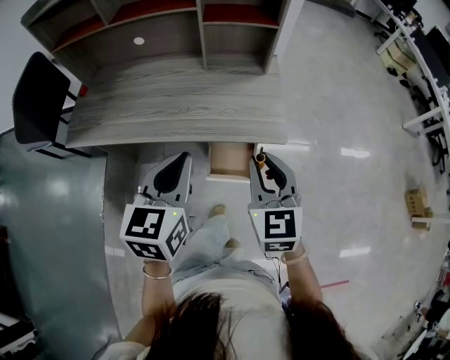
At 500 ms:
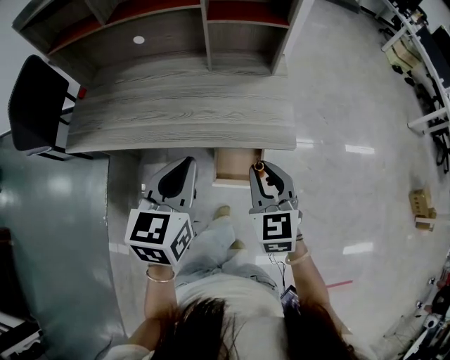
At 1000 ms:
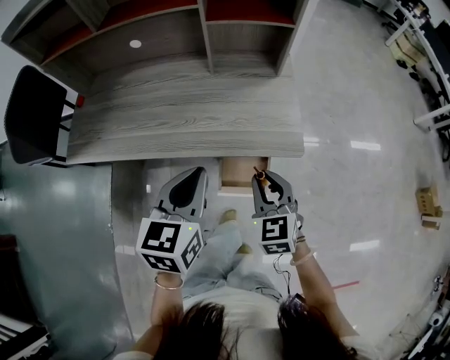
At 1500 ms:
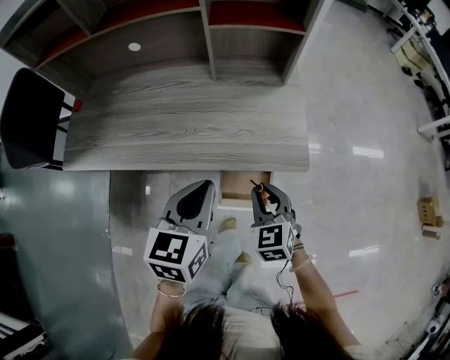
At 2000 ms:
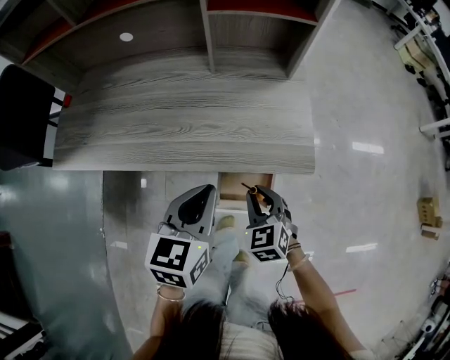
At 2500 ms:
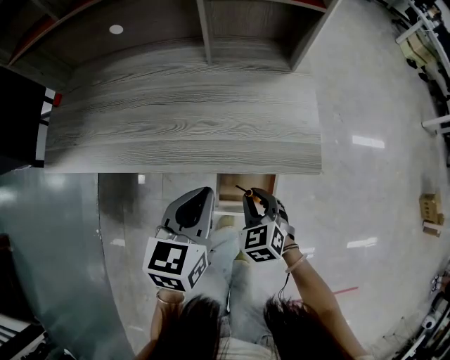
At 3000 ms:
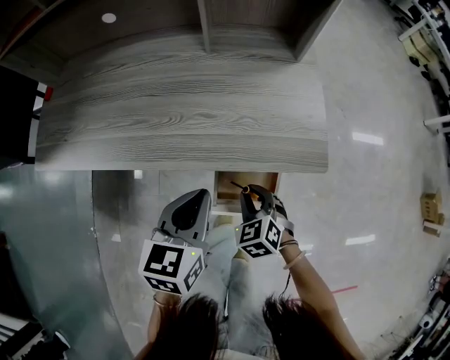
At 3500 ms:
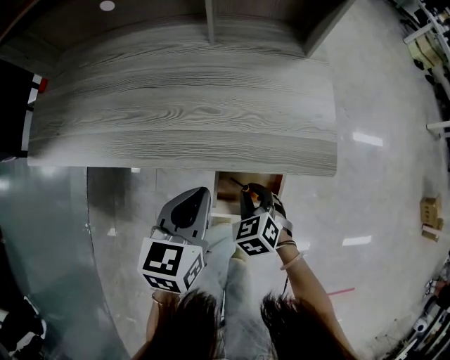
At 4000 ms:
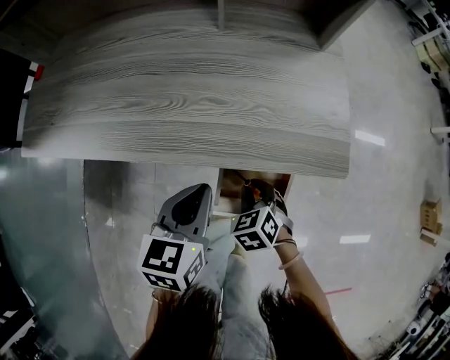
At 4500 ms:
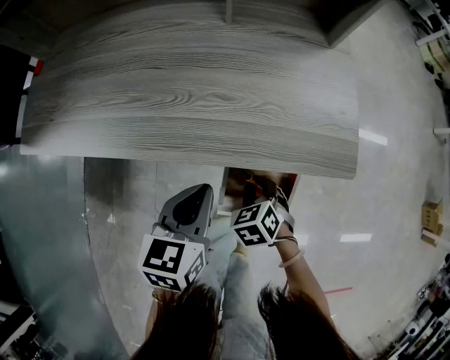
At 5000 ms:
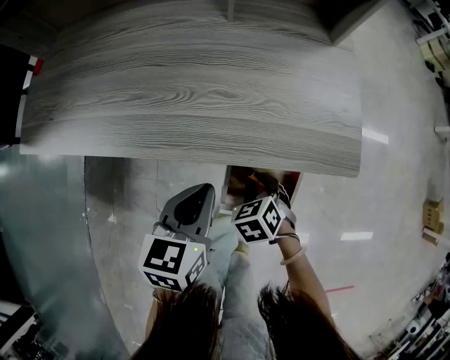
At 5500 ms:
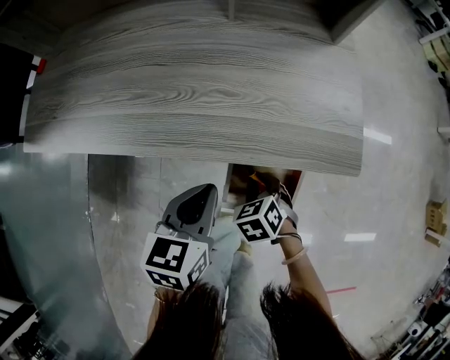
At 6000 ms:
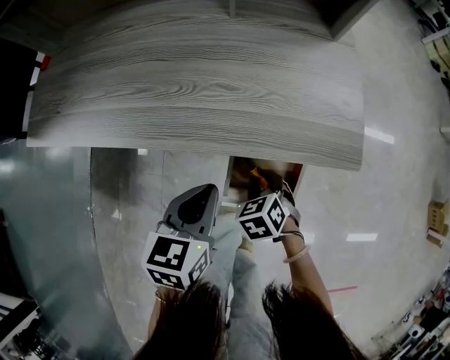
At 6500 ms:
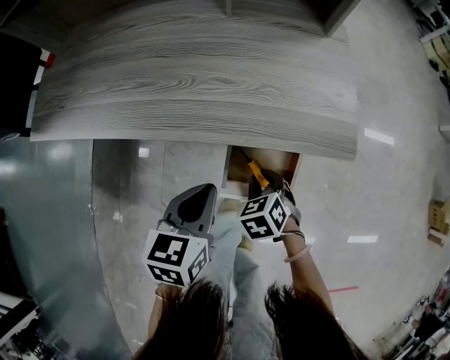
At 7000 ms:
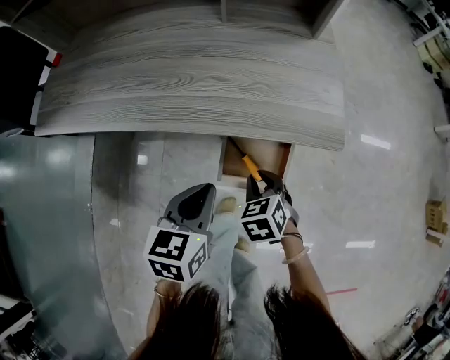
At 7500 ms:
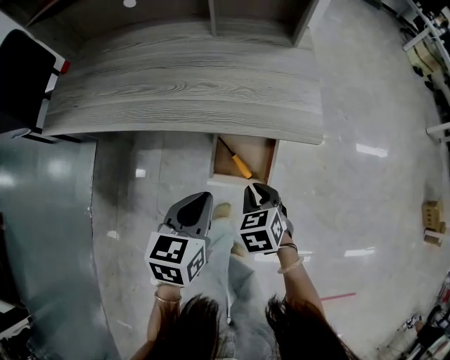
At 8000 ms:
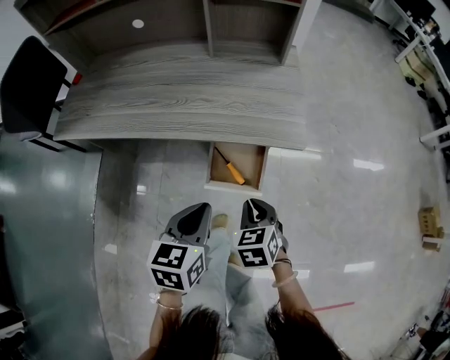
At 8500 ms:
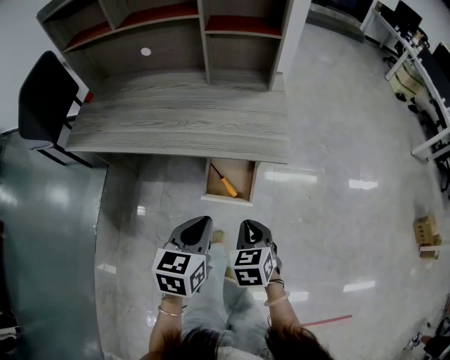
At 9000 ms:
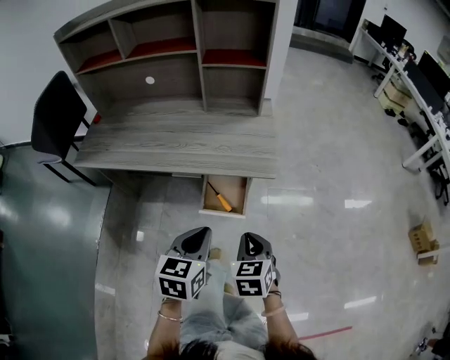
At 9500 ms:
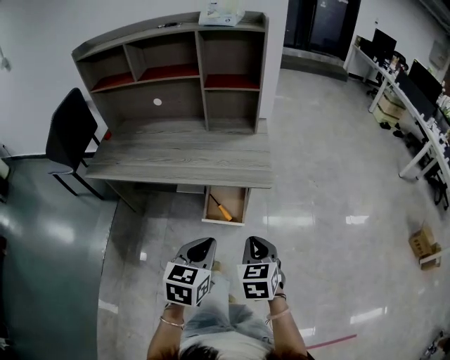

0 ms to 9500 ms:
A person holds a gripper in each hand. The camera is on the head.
0 ms to 2000 ms: The right gripper moves downward, some 25 cm, and swivels roughly 30 degrees. Meanwhile the left gripper shifts roughly 15 cm downward and forward.
2000 ms to 4000 ms: Both grippers travel together downward, roughly 15 cm.
4000 ms to 5500 ms: The grippers move only a little.
5500 ms to 7500 ms: The right gripper heads upward and backward, covering some 15 cm; the left gripper heads backward and upward, covering approximately 10 cm.
7500 ms to 9500 ms: The right gripper travels upward and backward by approximately 30 cm, and swivels roughly 20 degrees; the left gripper shifts some 25 cm upward, backward and to the right.

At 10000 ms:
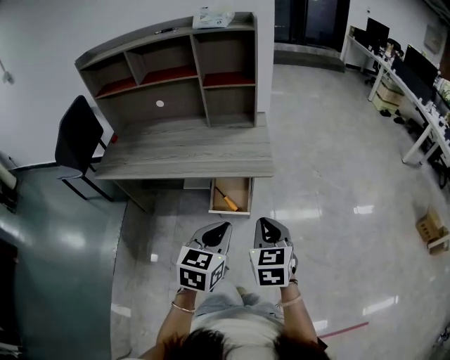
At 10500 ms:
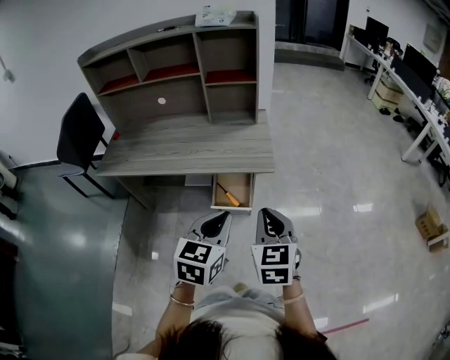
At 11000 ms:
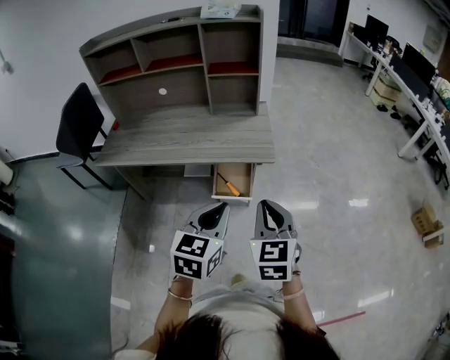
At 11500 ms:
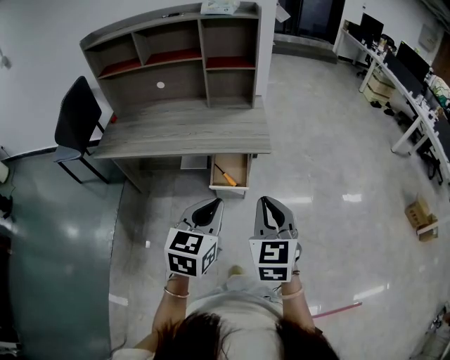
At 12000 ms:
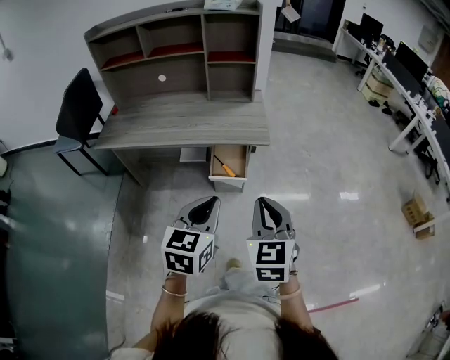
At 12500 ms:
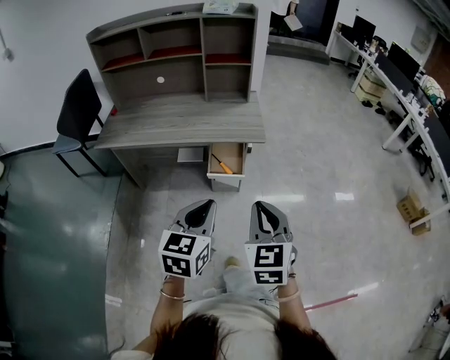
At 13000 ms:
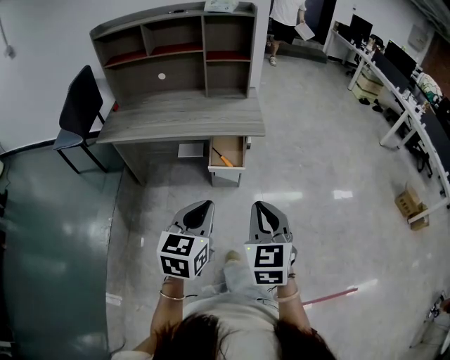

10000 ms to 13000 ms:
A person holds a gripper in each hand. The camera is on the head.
10000 ms to 11500 ms: The left gripper is displaced backward and upward by some 10 cm, while the right gripper heads upward and backward, covering about 10 cm.
11500 ms to 13000 ms: The grippers both shift backward by roughly 15 cm.

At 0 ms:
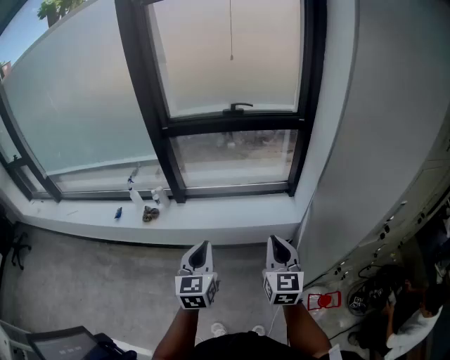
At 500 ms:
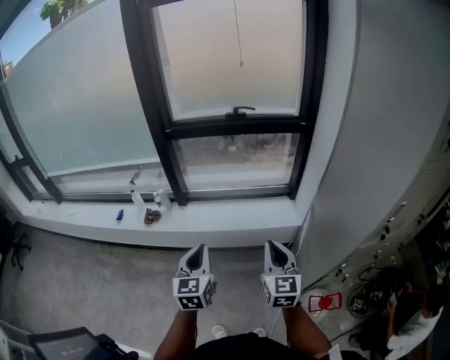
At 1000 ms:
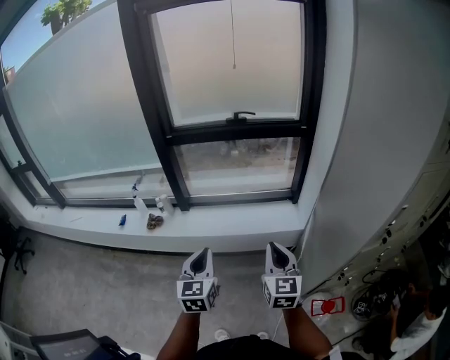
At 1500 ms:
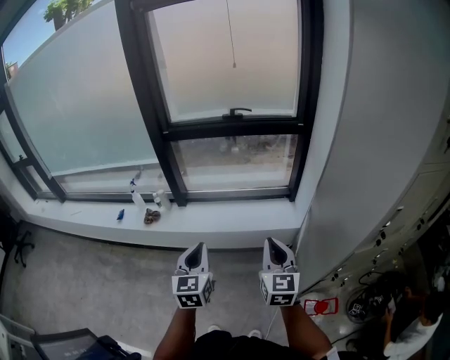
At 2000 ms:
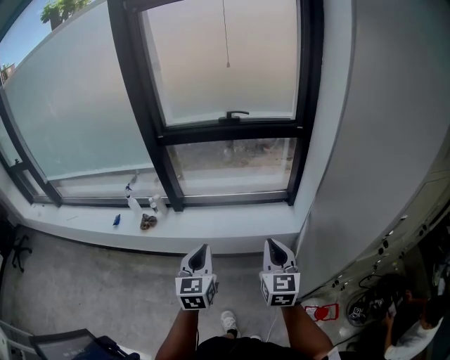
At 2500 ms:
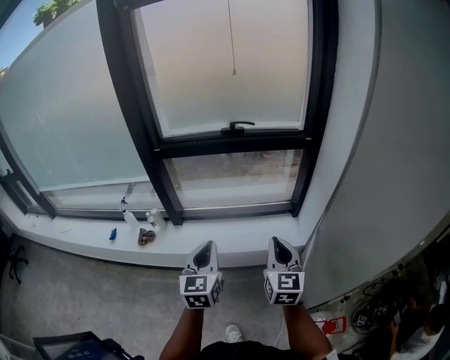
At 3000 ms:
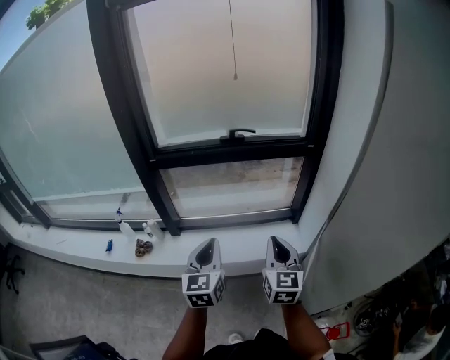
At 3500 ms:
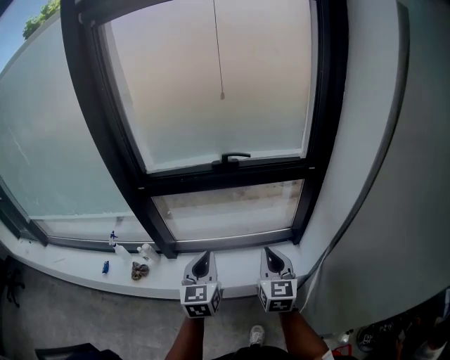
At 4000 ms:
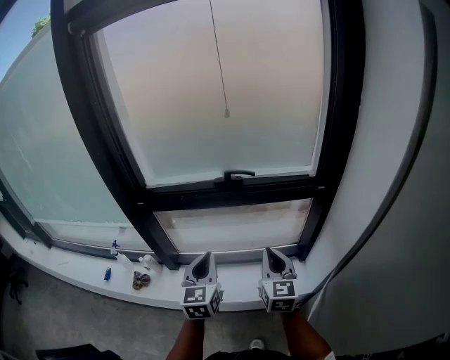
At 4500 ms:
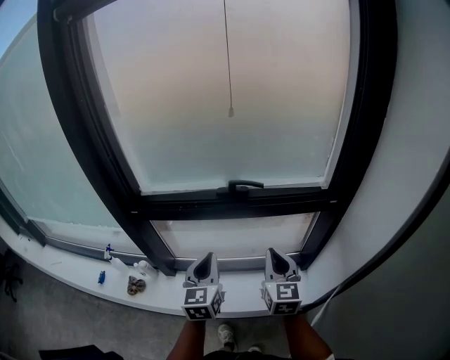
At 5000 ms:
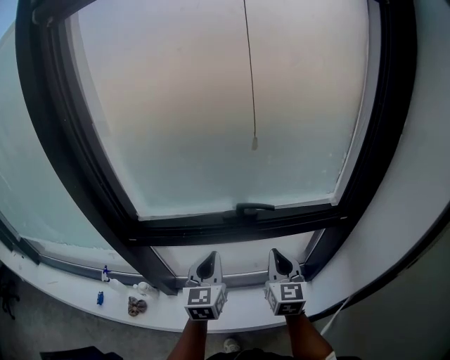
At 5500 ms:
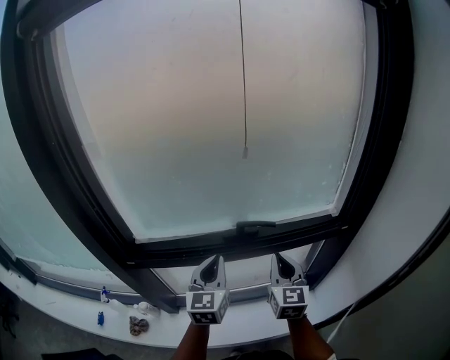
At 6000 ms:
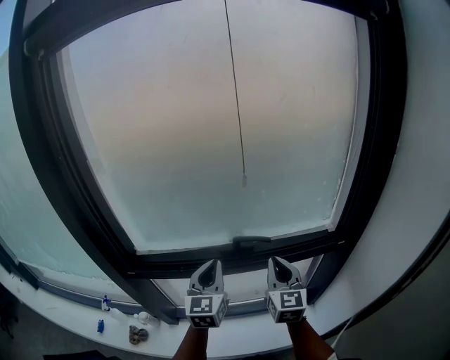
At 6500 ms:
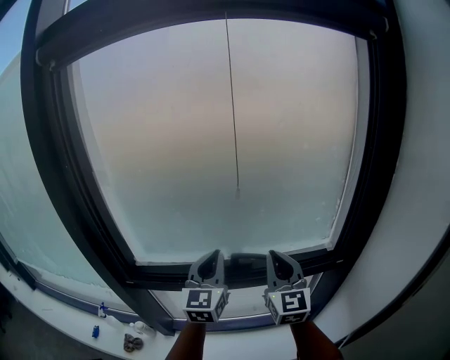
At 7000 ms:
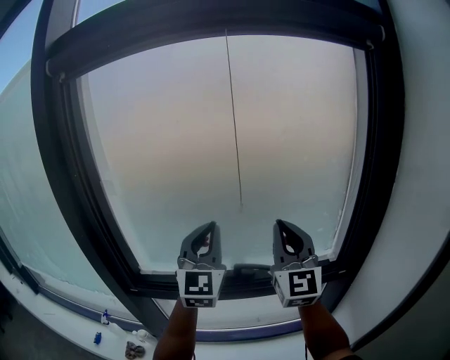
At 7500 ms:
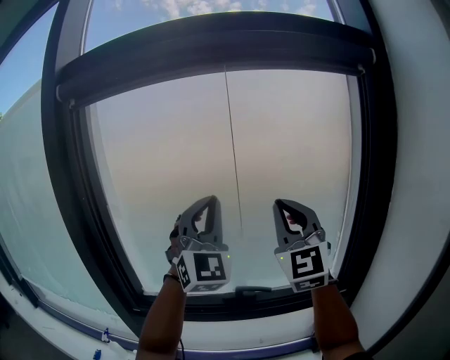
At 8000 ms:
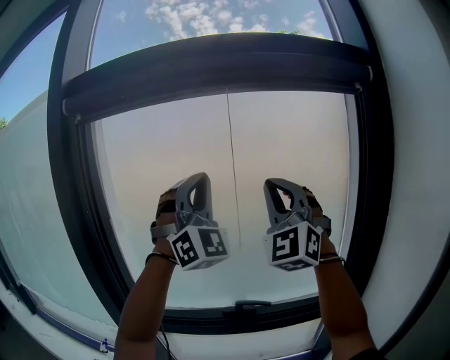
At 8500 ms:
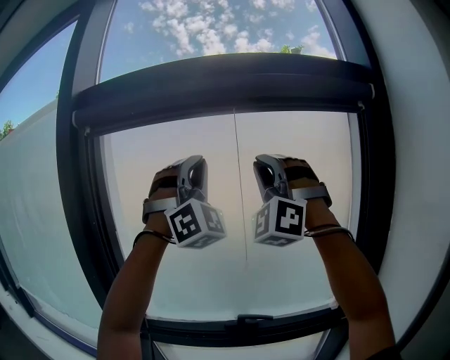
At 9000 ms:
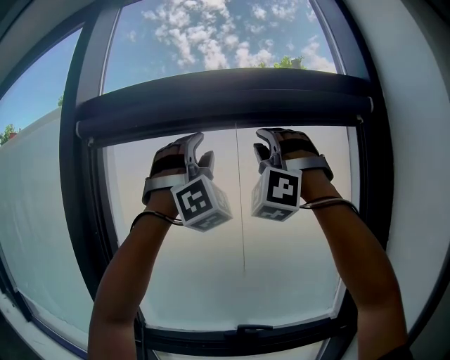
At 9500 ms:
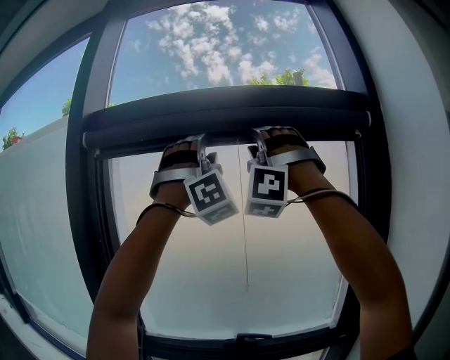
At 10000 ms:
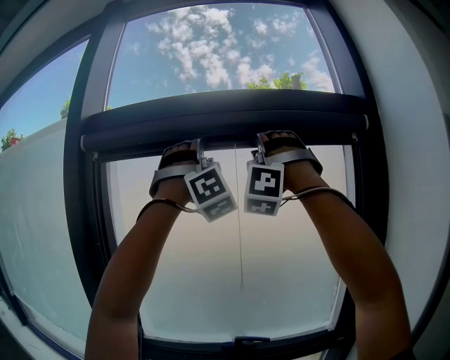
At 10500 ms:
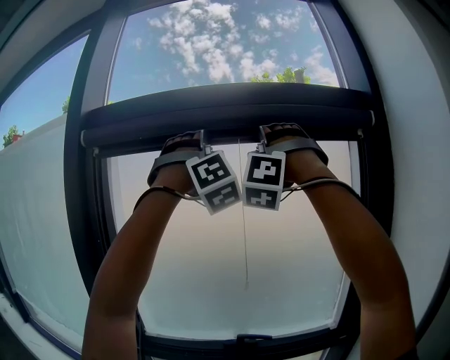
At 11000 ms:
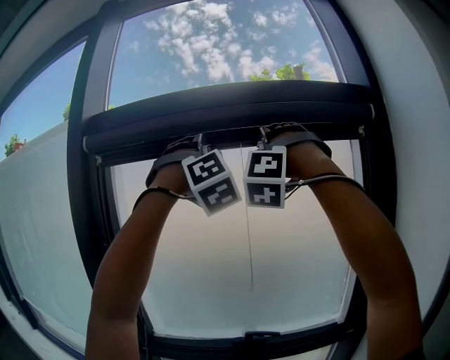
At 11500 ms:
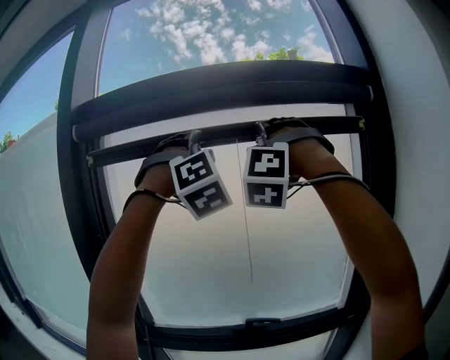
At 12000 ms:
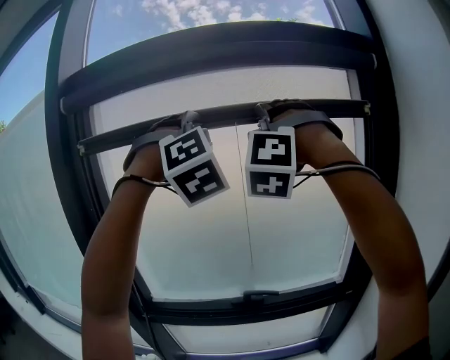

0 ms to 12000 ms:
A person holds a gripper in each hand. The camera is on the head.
0 ms to 2000 ms: The left gripper shifts by approximately 5 cm. The right gripper ends up approximately 5 cm from where it was.
2000 ms to 4000 ms: Both grippers move forward, some 40 cm.
4000 ms to 6000 ms: Both grippers travel together forward, some 25 cm.
6000 ms to 8000 ms: Both grippers travel together upward, about 40 cm. The left gripper twists approximately 70 degrees clockwise, seen from behind. Meanwhile the right gripper rolls counterclockwise, seen from behind, by approximately 50 degrees.
8000 ms to 10000 ms: The grippers both shift upward by approximately 20 cm. The right gripper rotates around the line of its fingers by some 50 degrees, counterclockwise from behind, and opens. Meanwhile the left gripper turns by approximately 30 degrees, and opens.
10000 ms to 12000 ms: The two grippers go approximately 10 cm downward. The right gripper rotates roughly 20 degrees. The left gripper swivels about 30 degrees.

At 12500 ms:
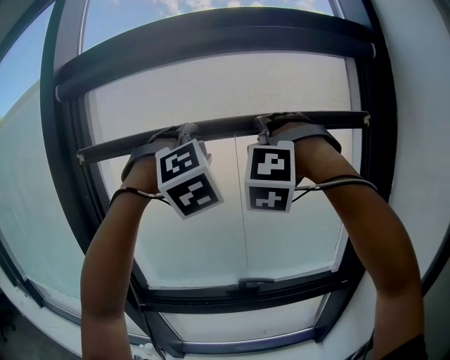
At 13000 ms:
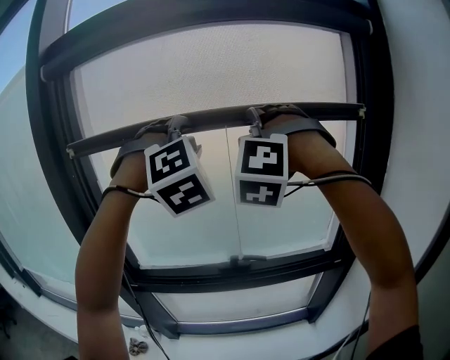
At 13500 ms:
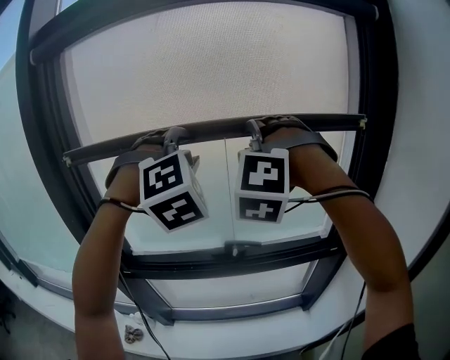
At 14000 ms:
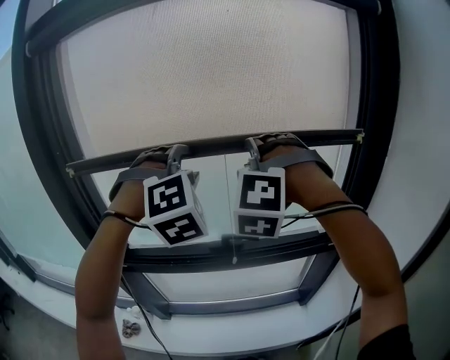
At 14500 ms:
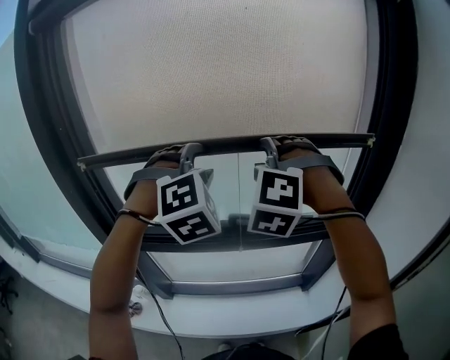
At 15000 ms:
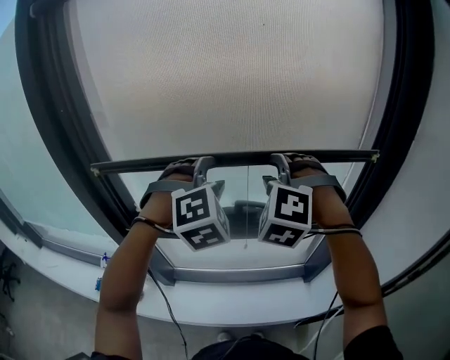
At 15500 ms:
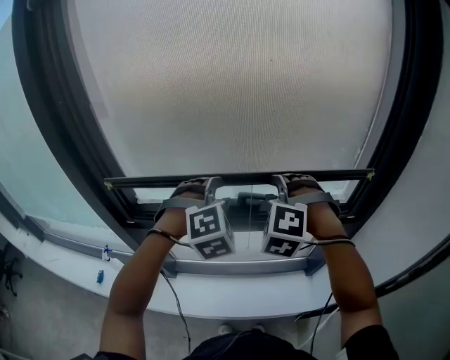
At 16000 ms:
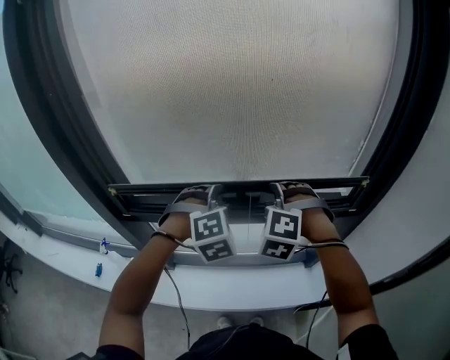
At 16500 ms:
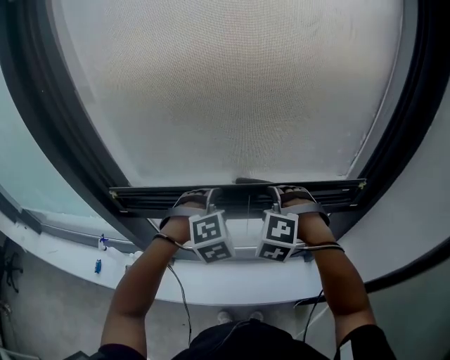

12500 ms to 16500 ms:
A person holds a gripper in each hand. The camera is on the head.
12500 ms to 14500 ms: The grippers both shift downward by roughly 20 cm. The right gripper swivels approximately 20 degrees.
14500 ms to 16500 ms: Both grippers move downward, some 25 cm. The right gripper swivels approximately 20 degrees, while the left gripper rotates some 20 degrees.
